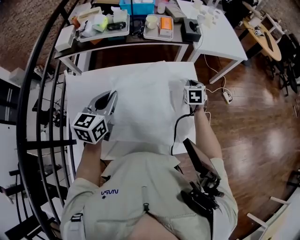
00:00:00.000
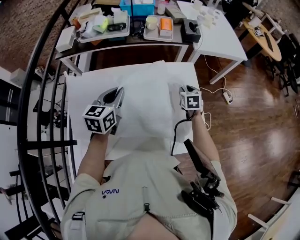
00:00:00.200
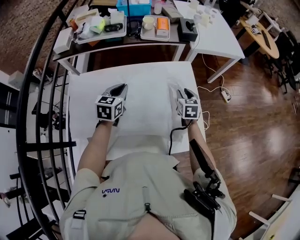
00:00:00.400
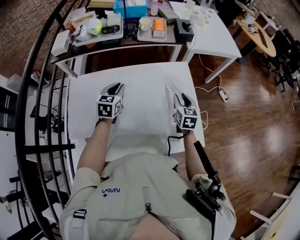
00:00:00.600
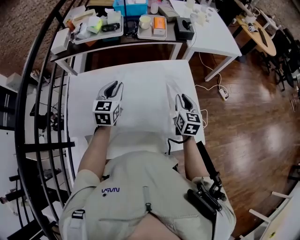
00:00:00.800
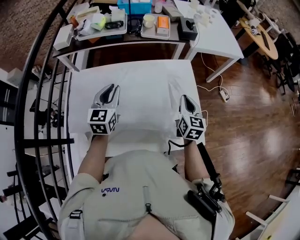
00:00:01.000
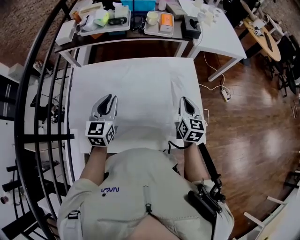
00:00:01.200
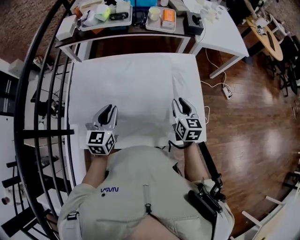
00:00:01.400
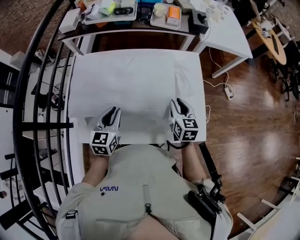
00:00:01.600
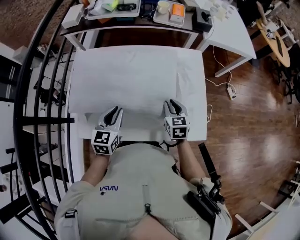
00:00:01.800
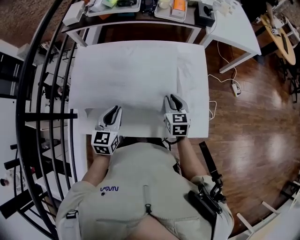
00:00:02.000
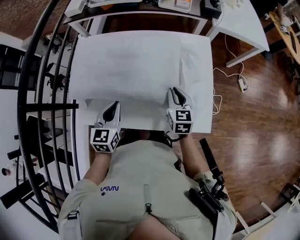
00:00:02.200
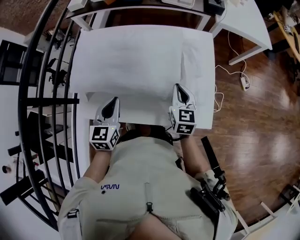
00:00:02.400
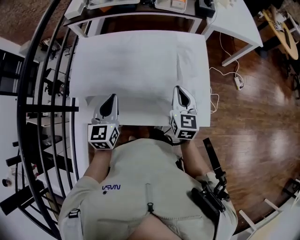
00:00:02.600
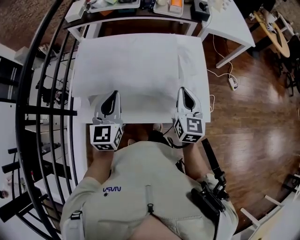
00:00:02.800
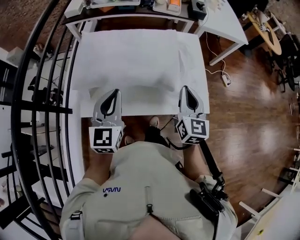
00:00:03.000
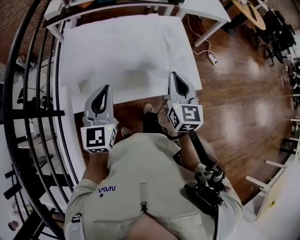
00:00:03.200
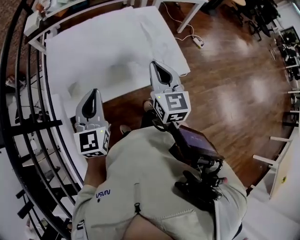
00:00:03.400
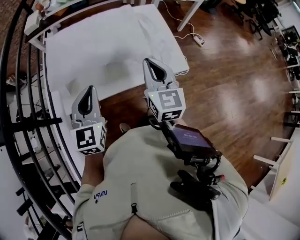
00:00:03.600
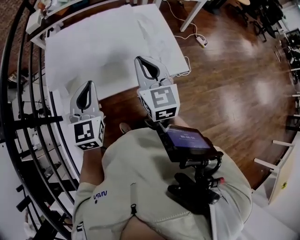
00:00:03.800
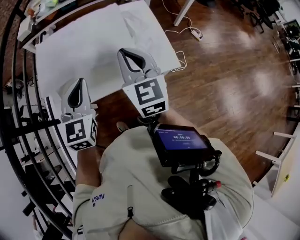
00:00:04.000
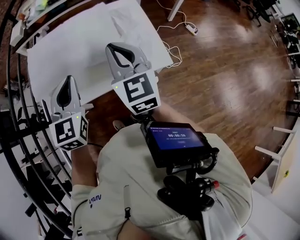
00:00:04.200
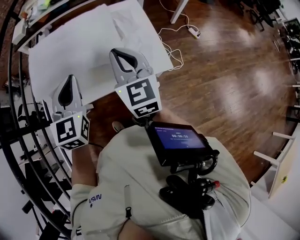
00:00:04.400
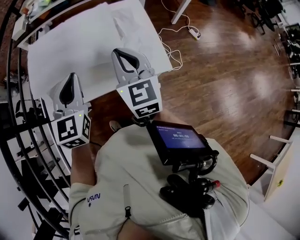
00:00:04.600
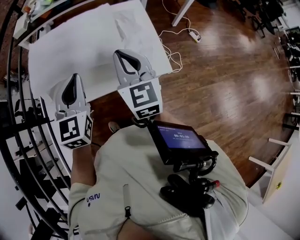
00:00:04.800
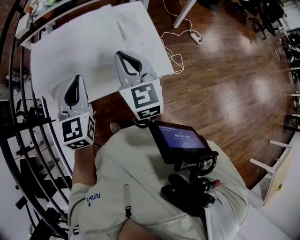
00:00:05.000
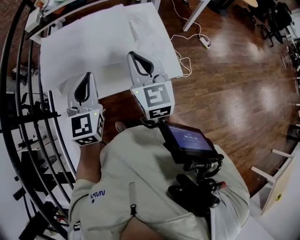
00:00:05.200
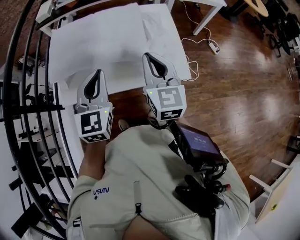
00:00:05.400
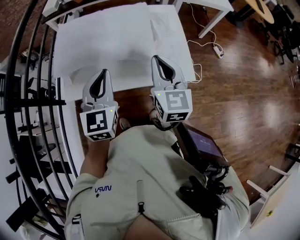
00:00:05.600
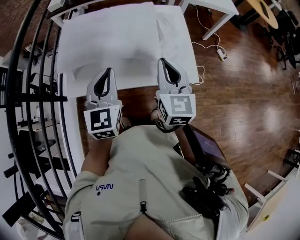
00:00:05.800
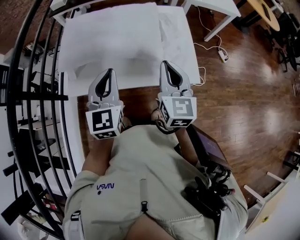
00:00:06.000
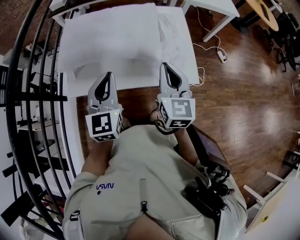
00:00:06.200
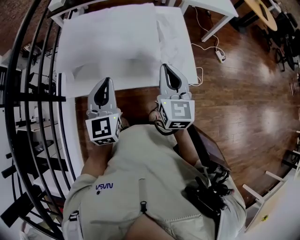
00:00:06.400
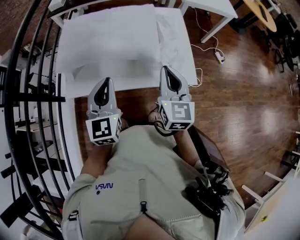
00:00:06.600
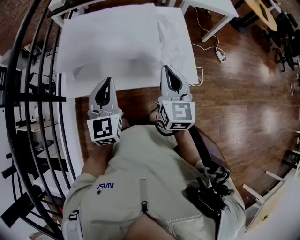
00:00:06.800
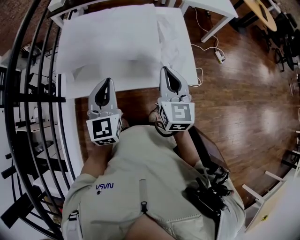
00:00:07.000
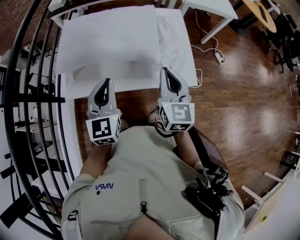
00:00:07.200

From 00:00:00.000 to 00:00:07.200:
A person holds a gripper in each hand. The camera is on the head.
From 00:00:00.000 to 00:00:01.400: The left gripper travels downward and backward by roughly 15 cm; the right gripper shifts approximately 20 cm backward, swivels about 30 degrees, and opens its fingers.
From 00:00:01.400 to 00:00:02.800: The grippers both shift backward and upward by about 10 cm. The right gripper closes its fingers.
From 00:00:02.800 to 00:00:04.400: The right gripper shifts about 10 cm upward and backward. The left gripper travels to the right, backward and upward by roughly 10 cm.
From 00:00:04.400 to 00:00:05.800: The grippers move only a little.
From 00:00:05.800 to 00:00:07.200: The grippers make only small movements.

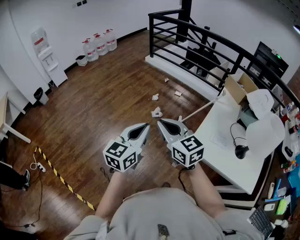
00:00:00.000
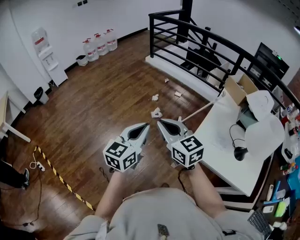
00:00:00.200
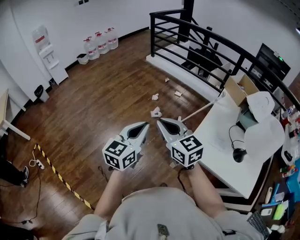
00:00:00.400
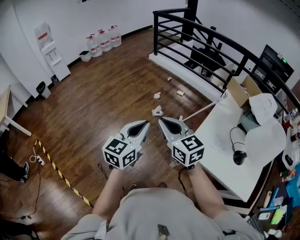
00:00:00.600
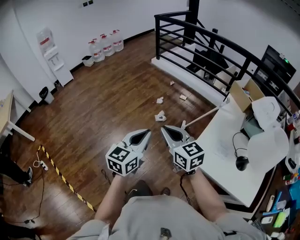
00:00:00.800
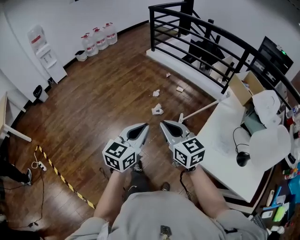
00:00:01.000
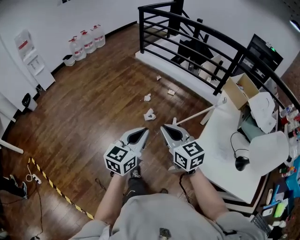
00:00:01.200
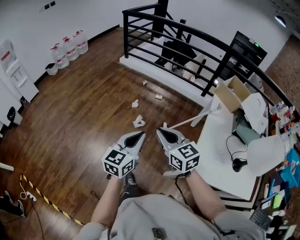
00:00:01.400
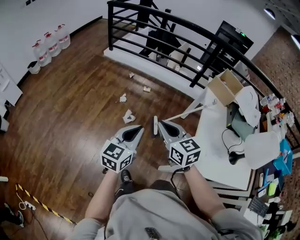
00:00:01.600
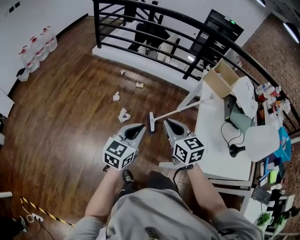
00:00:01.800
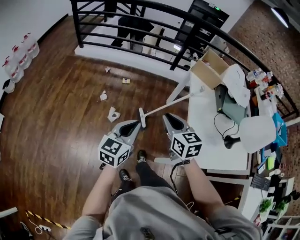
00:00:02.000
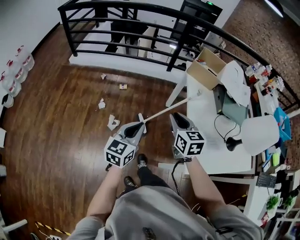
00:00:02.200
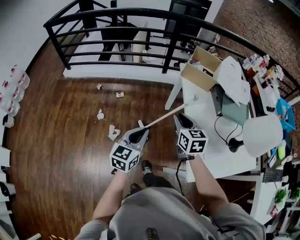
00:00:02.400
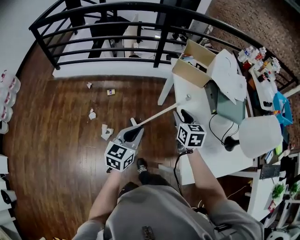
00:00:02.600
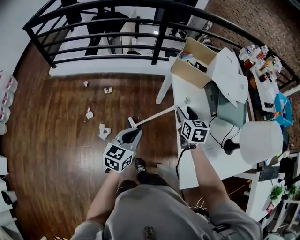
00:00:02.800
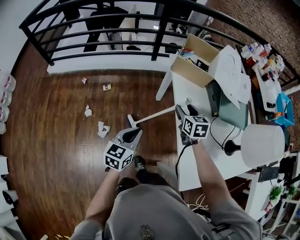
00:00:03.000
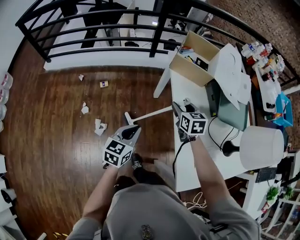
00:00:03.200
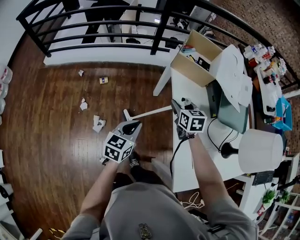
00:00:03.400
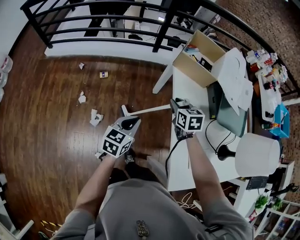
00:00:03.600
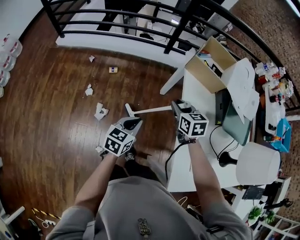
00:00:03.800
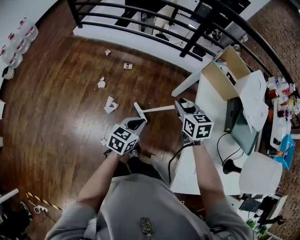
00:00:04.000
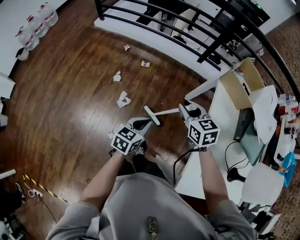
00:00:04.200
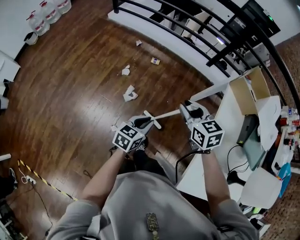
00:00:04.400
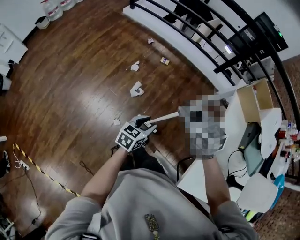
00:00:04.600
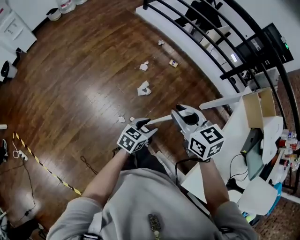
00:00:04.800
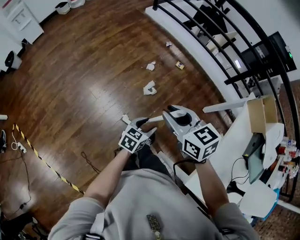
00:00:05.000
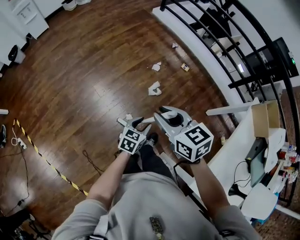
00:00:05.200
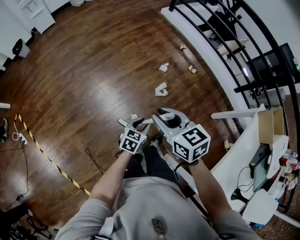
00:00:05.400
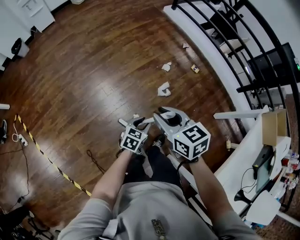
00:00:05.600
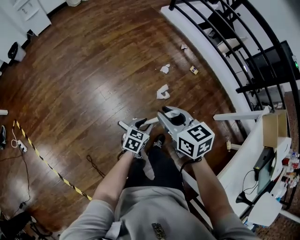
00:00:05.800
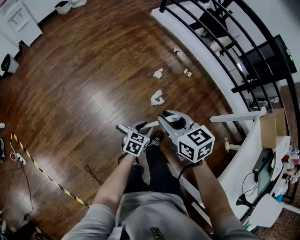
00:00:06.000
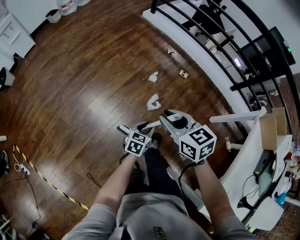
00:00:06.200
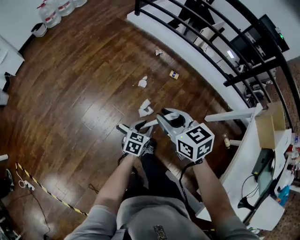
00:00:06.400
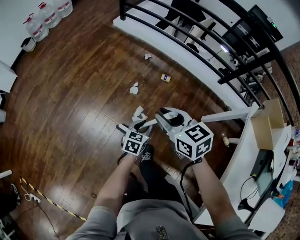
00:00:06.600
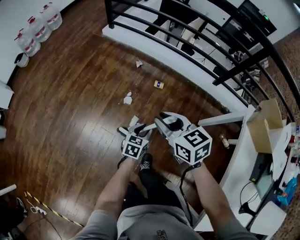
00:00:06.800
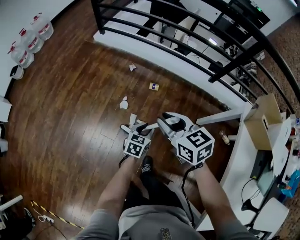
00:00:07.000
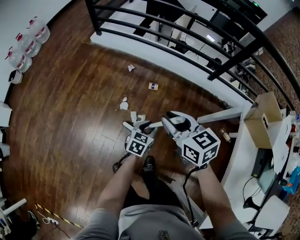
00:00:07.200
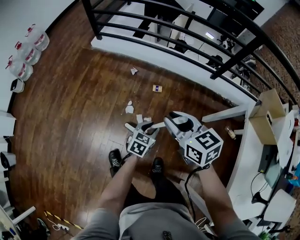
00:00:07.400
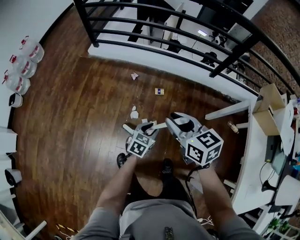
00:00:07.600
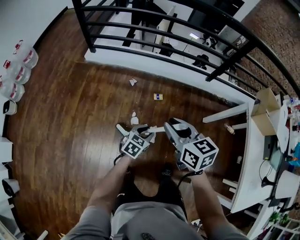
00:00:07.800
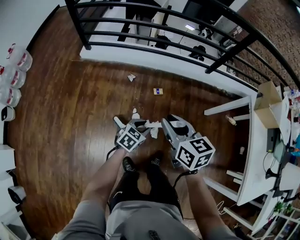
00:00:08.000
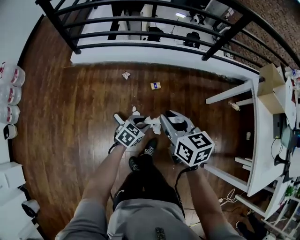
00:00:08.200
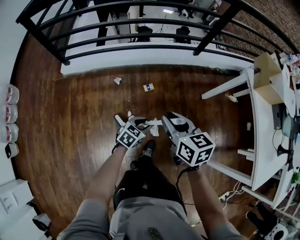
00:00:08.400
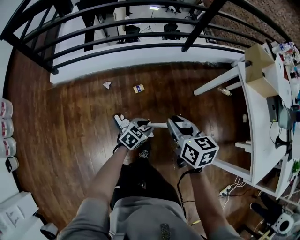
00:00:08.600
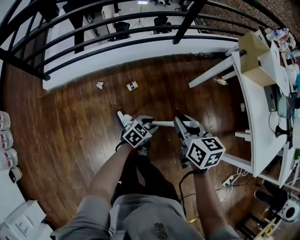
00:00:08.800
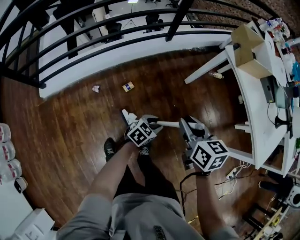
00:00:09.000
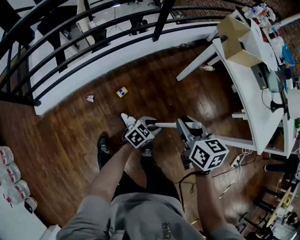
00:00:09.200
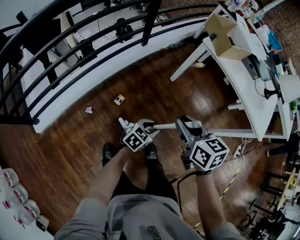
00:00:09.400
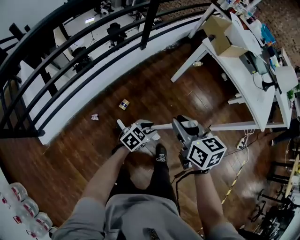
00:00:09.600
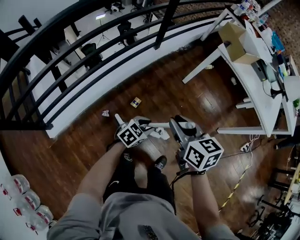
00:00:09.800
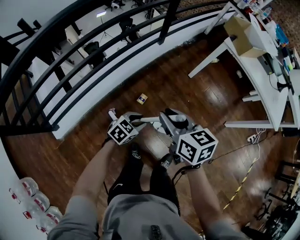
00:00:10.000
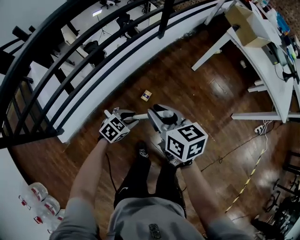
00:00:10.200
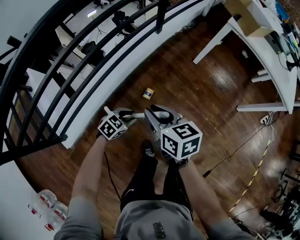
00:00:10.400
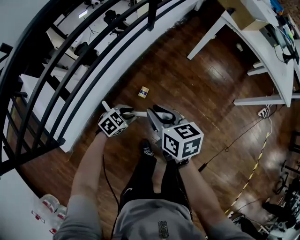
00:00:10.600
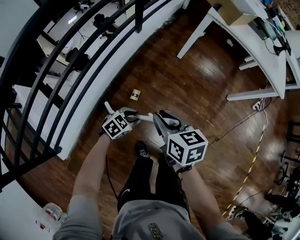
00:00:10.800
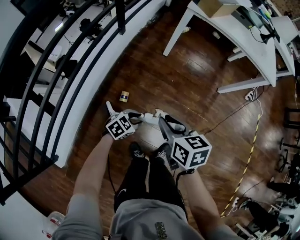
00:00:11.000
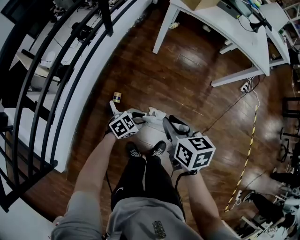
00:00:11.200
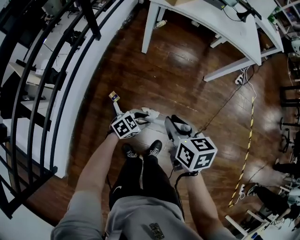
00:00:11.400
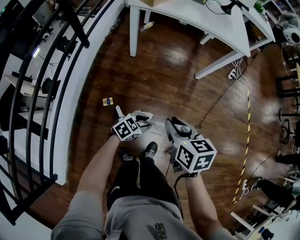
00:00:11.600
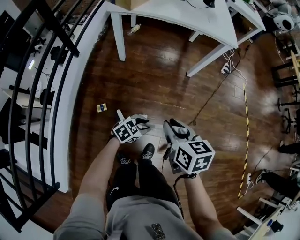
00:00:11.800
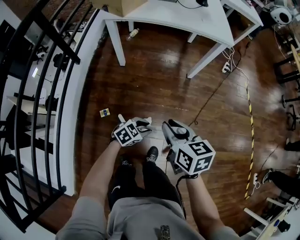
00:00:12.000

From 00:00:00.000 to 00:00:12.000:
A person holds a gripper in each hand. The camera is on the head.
From 00:00:00.000 to 00:00:01.600: Both grippers move forward, roughly 25 cm. The right gripper rotates roughly 30 degrees.
From 00:00:01.600 to 00:00:03.000: The right gripper shifts by about 50 cm, turns by some 50 degrees, and opens up, while the left gripper ends up about 35 cm from where it was, and turns by approximately 30 degrees.
From 00:00:03.000 to 00:00:04.400: The left gripper changes place by about 15 cm, and changes its angle by roughly 20 degrees. Meanwhile the right gripper changes place by approximately 25 cm, turns by some 50 degrees, and closes up.
From 00:00:04.400 to 00:00:06.000: The right gripper changes place by some 35 cm, and turns by some 30 degrees. Meanwhile the left gripper changes place by some 30 cm, rotates approximately 20 degrees, and opens up.
From 00:00:06.000 to 00:00:07.600: The left gripper changes place by roughly 40 cm, and swivels approximately 40 degrees; the right gripper ends up some 40 cm from where it was, and swivels some 40 degrees.
From 00:00:07.600 to 00:00:09.000: The left gripper changes place by some 10 cm, and turns by about 60 degrees. Meanwhile the right gripper moves approximately 15 cm, and changes its angle by about 60 degrees.
From 00:00:09.000 to 00:00:10.400: The grippers both shift to the left by roughly 35 cm. The left gripper rotates some 30 degrees.
From 00:00:10.400 to 00:00:12.000: Both grippers are carried about 50 cm. The right gripper rotates about 40 degrees. The left gripper turns by about 40 degrees.

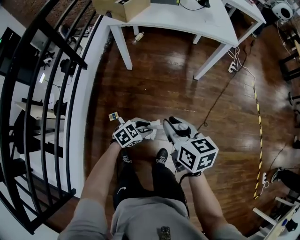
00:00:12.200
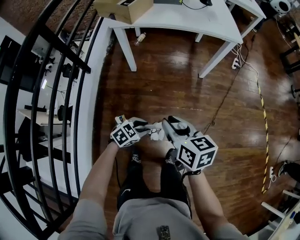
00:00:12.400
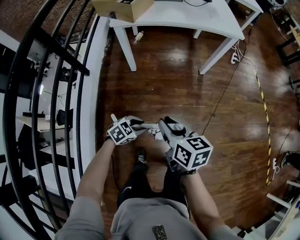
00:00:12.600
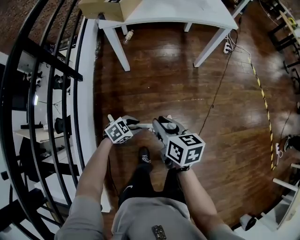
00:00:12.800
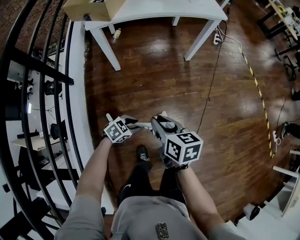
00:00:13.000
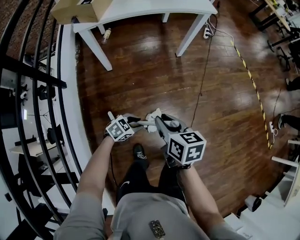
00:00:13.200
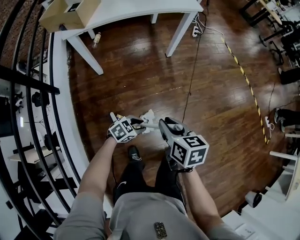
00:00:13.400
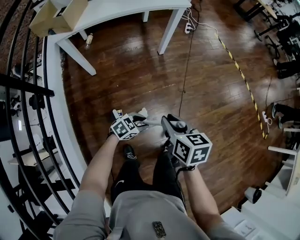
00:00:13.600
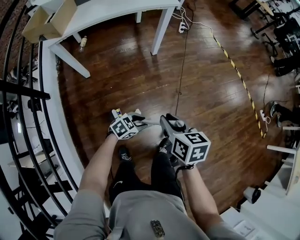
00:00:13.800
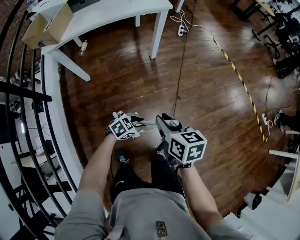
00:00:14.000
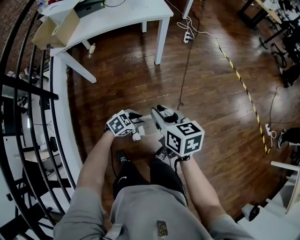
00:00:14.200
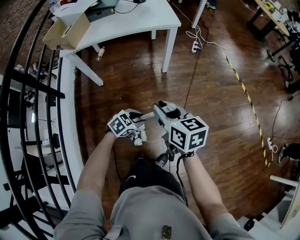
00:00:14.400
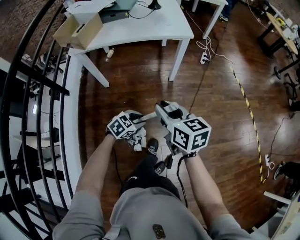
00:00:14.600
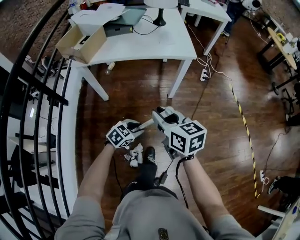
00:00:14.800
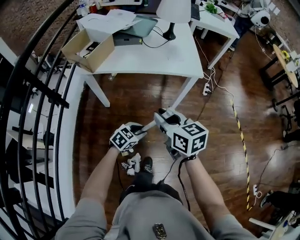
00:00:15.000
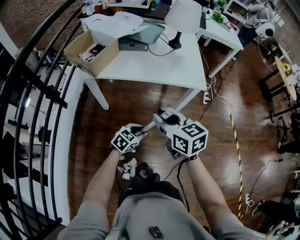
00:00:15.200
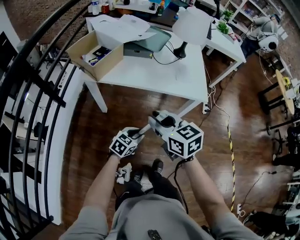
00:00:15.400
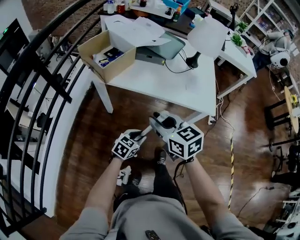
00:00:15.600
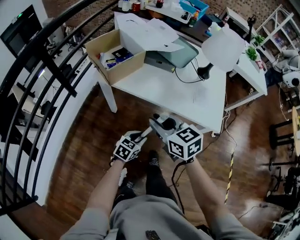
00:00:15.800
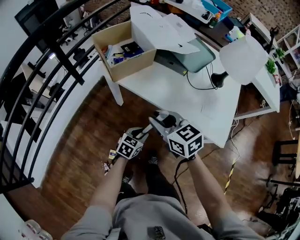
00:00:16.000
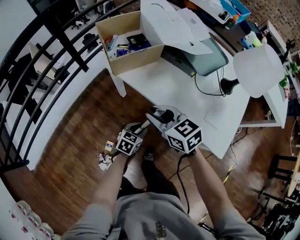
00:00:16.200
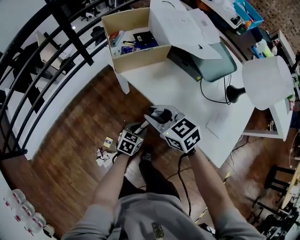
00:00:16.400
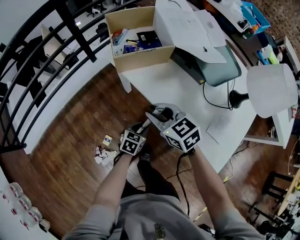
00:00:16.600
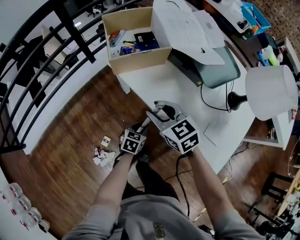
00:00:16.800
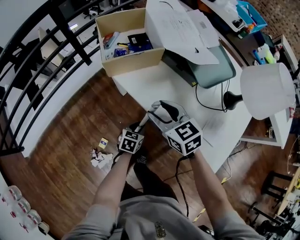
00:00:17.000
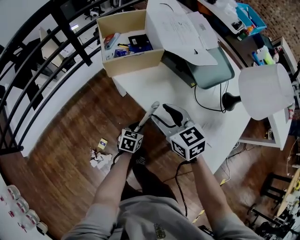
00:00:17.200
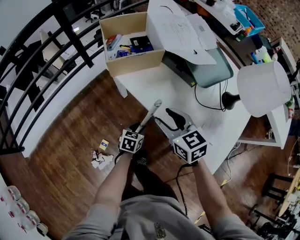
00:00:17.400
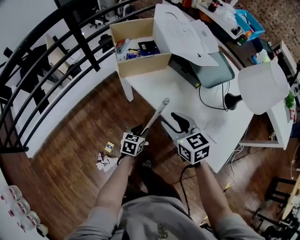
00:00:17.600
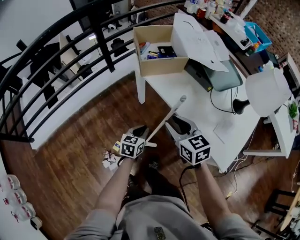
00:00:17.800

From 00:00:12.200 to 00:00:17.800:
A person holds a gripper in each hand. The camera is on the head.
From 00:00:12.200 to 00:00:13.600: The two grippers go about 5 cm downward. The left gripper rotates about 30 degrees, while the right gripper turns by roughly 30 degrees.
From 00:00:13.600 to 00:00:15.000: The left gripper changes place by some 30 cm, and changes its angle by approximately 30 degrees; the right gripper shifts by approximately 30 cm, and swivels roughly 40 degrees.
From 00:00:15.000 to 00:00:16.400: The right gripper ends up about 30 cm from where it was, and rotates roughly 60 degrees. The left gripper shifts by roughly 25 cm, and swivels roughly 60 degrees.
From 00:00:16.400 to 00:00:17.800: The left gripper heads upward and to the left, covering about 10 cm, and turns by some 20 degrees. The right gripper shifts by roughly 5 cm.
